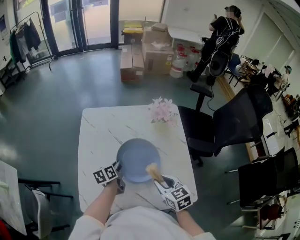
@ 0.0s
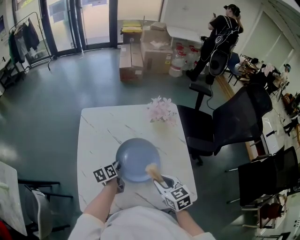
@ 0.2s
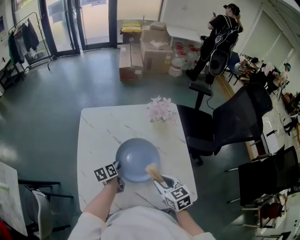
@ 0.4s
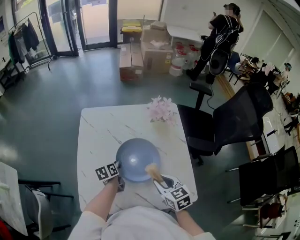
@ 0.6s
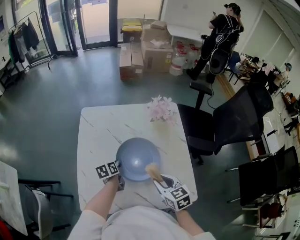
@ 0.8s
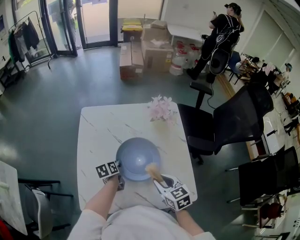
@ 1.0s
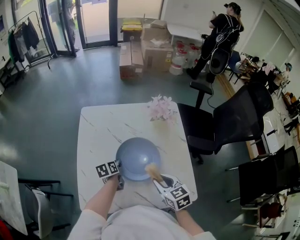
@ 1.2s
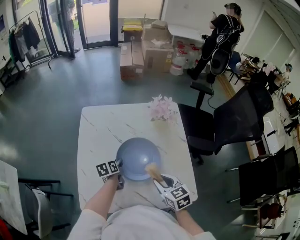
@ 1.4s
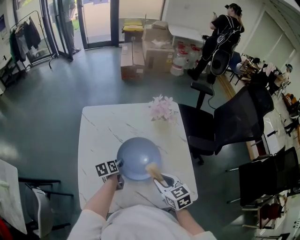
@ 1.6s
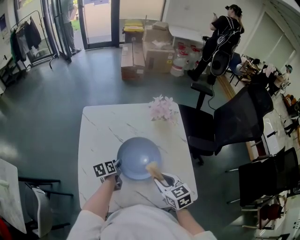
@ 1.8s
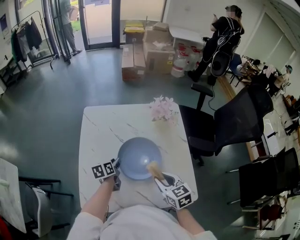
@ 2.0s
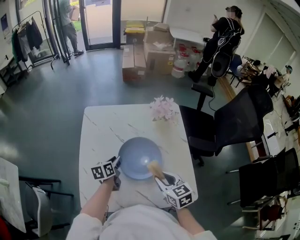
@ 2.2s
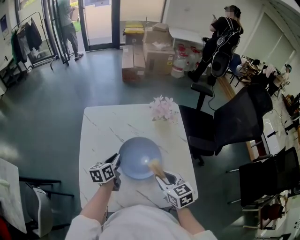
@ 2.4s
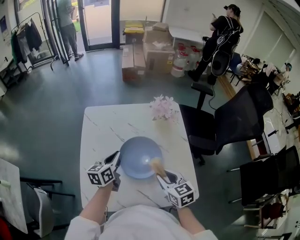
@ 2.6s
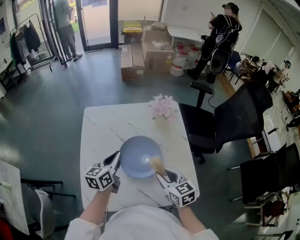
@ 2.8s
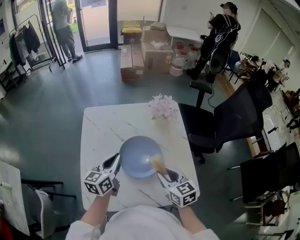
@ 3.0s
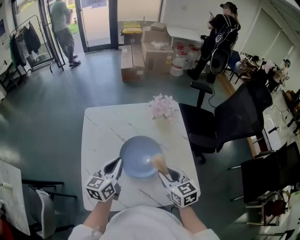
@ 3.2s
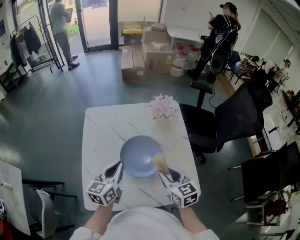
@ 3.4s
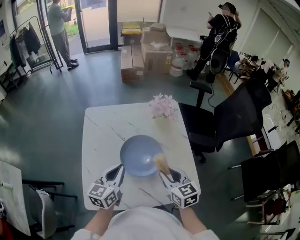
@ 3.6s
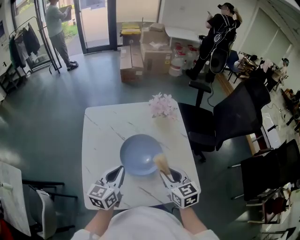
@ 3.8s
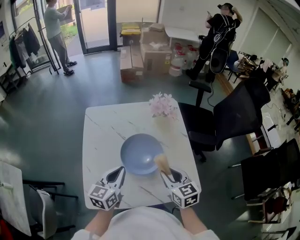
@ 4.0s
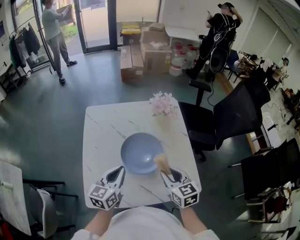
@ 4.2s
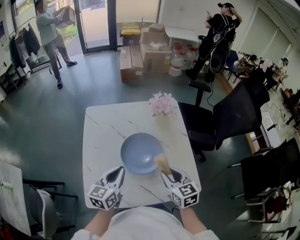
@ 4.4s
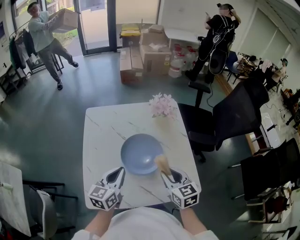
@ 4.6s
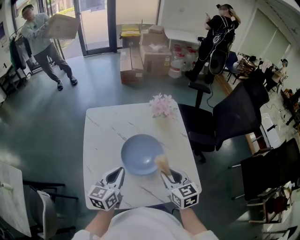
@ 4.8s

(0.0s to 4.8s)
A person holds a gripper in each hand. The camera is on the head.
0.0s - 1.6s: The left gripper opens.
1.6s - 3.2s: The right gripper moves upward, about 5 cm, while the left gripper travels upward by roughly 20 cm, rotates about 40 degrees, and closes up.
3.2s - 4.8s: The left gripper shifts some 5 cm backward.

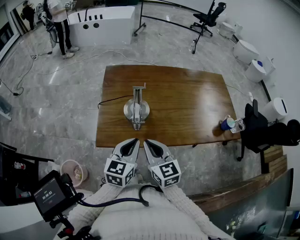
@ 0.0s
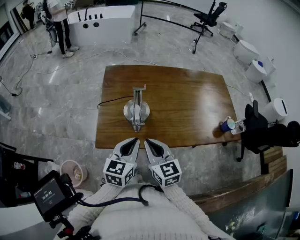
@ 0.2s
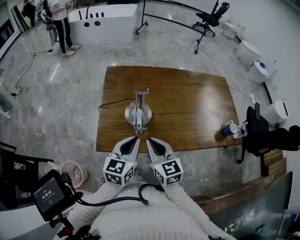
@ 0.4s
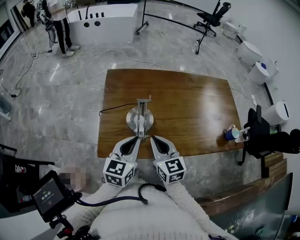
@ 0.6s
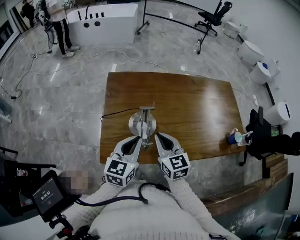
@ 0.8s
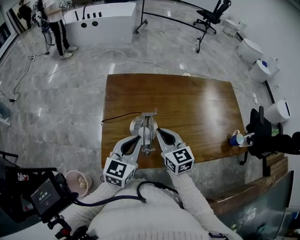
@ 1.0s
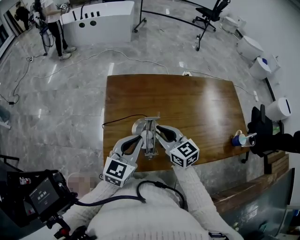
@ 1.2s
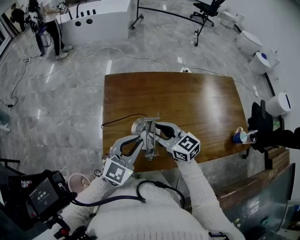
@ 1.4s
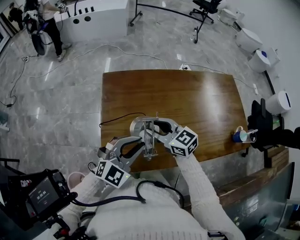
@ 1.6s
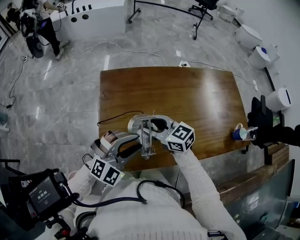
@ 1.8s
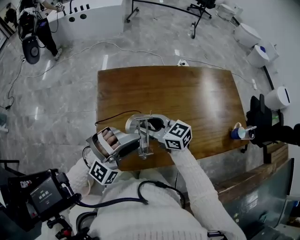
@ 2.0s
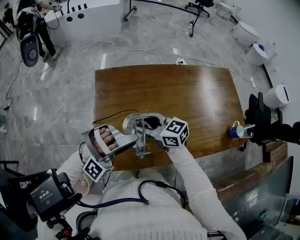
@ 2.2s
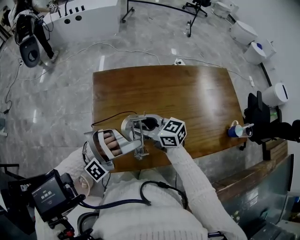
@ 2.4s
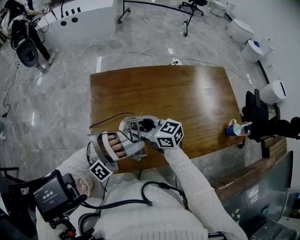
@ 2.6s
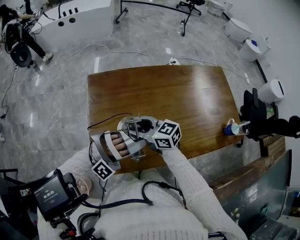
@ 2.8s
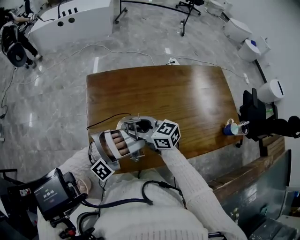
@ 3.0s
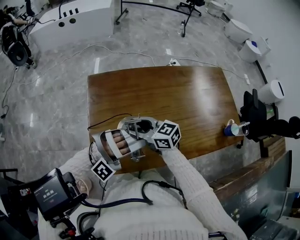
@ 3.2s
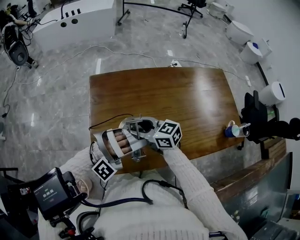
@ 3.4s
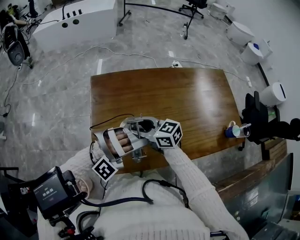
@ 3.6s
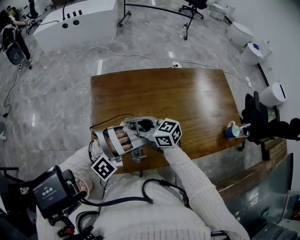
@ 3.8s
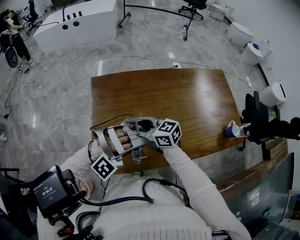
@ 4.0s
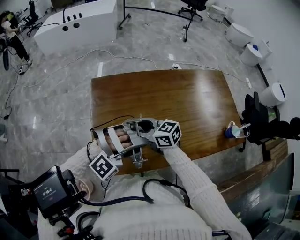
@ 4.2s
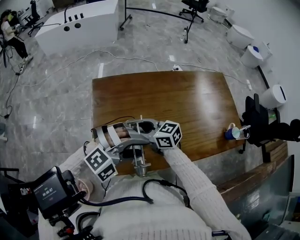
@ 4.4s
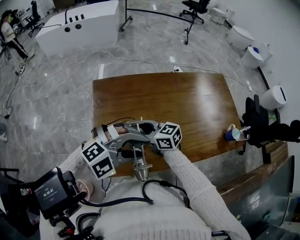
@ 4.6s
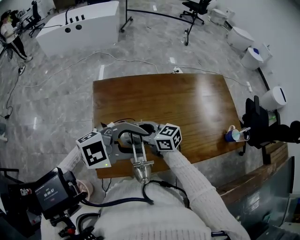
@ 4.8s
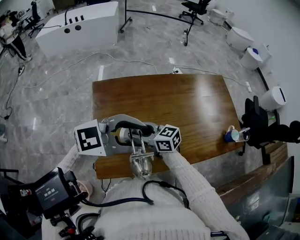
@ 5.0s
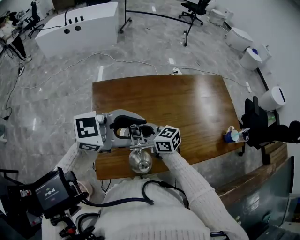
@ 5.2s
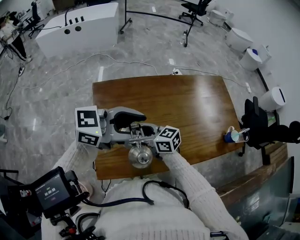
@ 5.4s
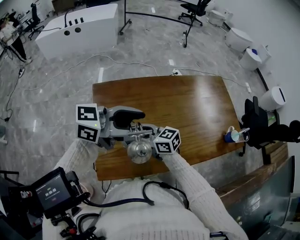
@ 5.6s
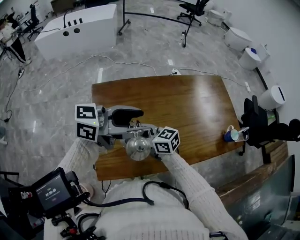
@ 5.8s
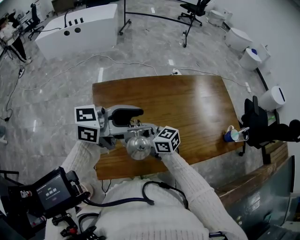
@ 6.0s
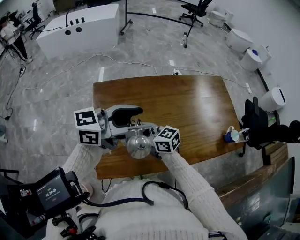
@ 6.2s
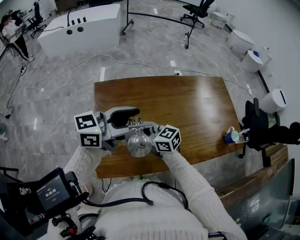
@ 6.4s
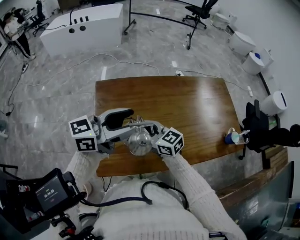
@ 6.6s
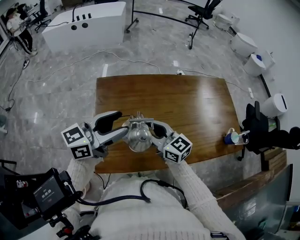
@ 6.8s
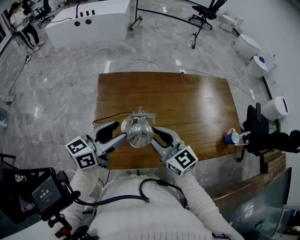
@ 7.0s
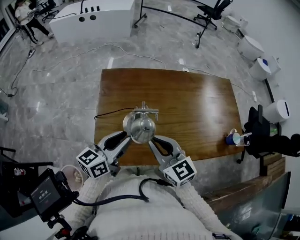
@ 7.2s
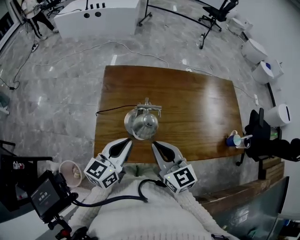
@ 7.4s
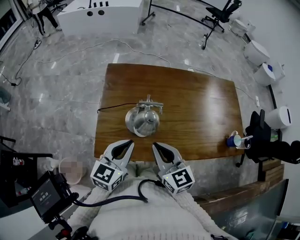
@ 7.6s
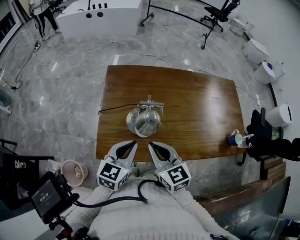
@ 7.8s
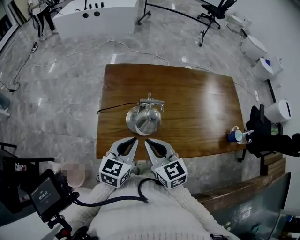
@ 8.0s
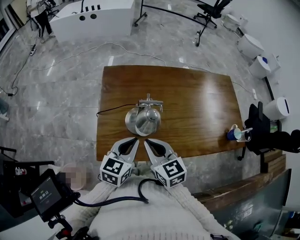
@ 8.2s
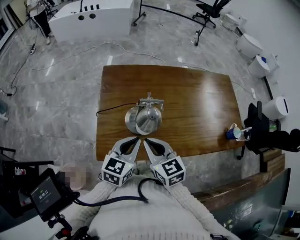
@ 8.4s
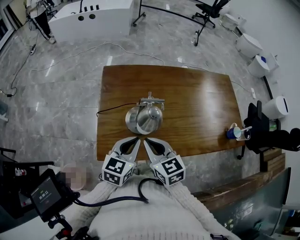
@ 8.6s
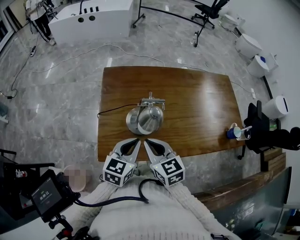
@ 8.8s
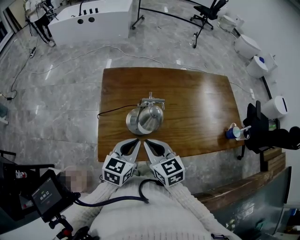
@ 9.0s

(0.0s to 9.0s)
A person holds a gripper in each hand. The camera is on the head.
0.0s - 1.6s: The left gripper is displaced forward by roughly 15 cm, and rotates around the line of its fingers by about 40 degrees, clockwise from behind; the right gripper is displaced forward by approximately 20 cm, turns by about 20 degrees, and opens up.
1.6s - 3.0s: The left gripper goes about 5 cm to the right, twists some 70 degrees clockwise, seen from behind, and opens up.
3.0s - 4.4s: The left gripper rotates roughly 40 degrees.
4.4s - 6.0s: The left gripper is displaced upward by roughly 10 cm, and rolls counterclockwise, seen from behind, by roughly 70 degrees.
6.0s - 7.6s: The right gripper shifts by about 15 cm, turns by roughly 30 degrees, and closes up, while the left gripper shifts about 15 cm downward, changes its angle by roughly 60 degrees, and closes up.
7.6s - 9.0s: The right gripper ends up roughly 5 cm from where it was.

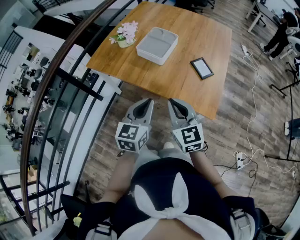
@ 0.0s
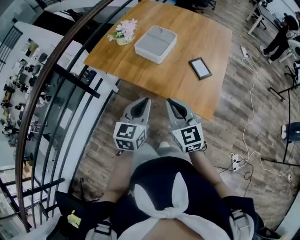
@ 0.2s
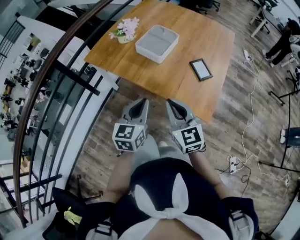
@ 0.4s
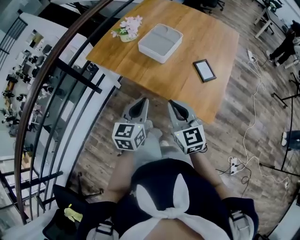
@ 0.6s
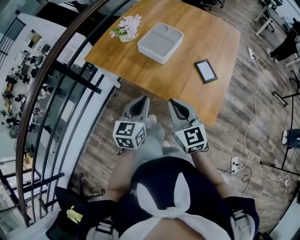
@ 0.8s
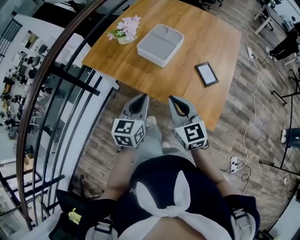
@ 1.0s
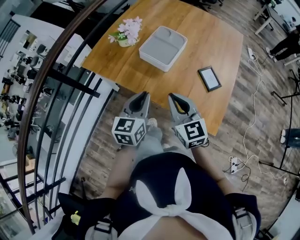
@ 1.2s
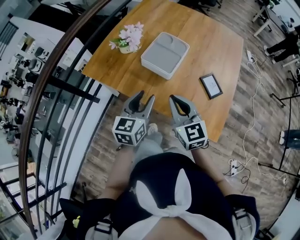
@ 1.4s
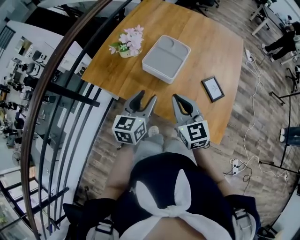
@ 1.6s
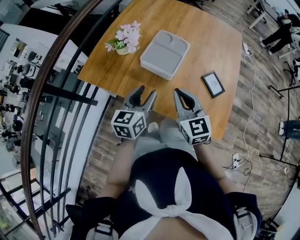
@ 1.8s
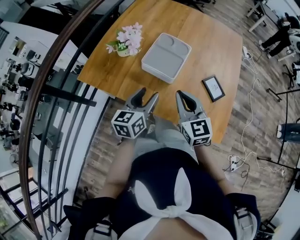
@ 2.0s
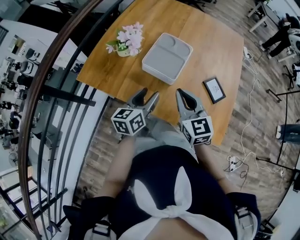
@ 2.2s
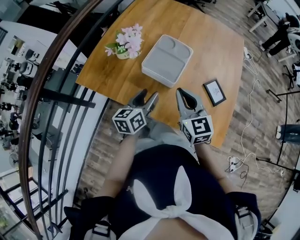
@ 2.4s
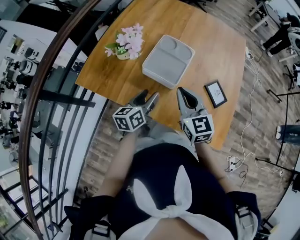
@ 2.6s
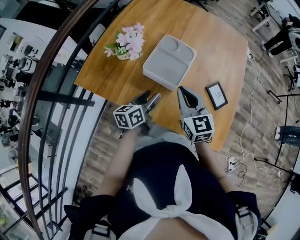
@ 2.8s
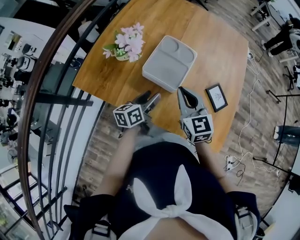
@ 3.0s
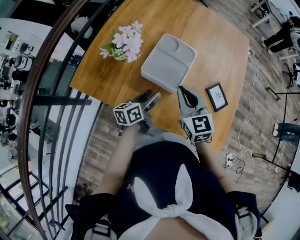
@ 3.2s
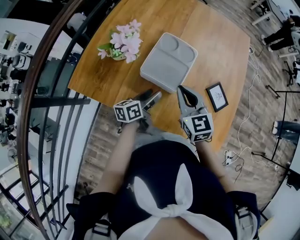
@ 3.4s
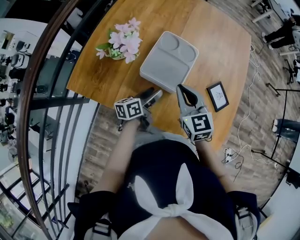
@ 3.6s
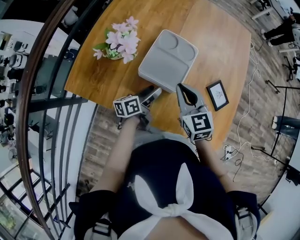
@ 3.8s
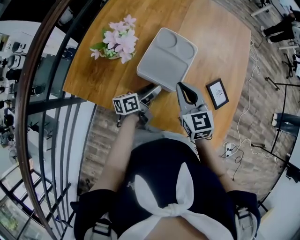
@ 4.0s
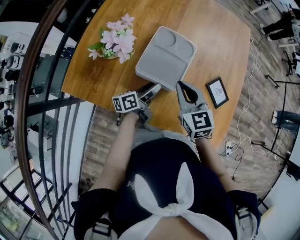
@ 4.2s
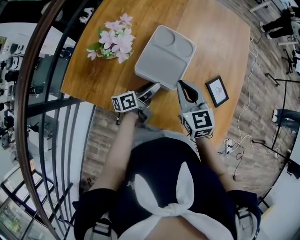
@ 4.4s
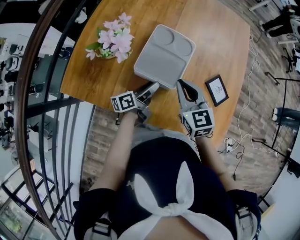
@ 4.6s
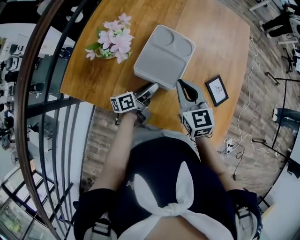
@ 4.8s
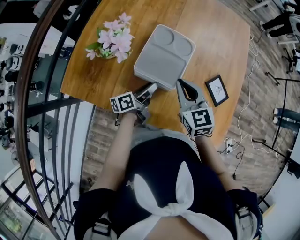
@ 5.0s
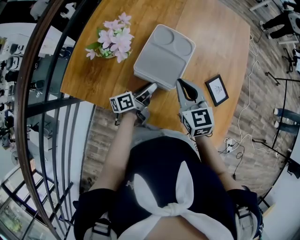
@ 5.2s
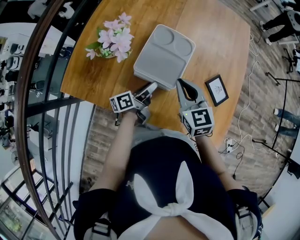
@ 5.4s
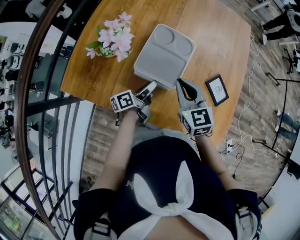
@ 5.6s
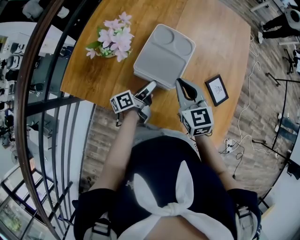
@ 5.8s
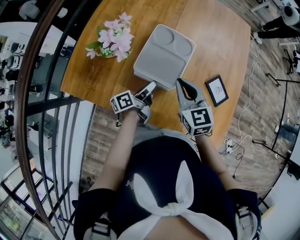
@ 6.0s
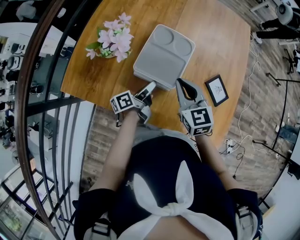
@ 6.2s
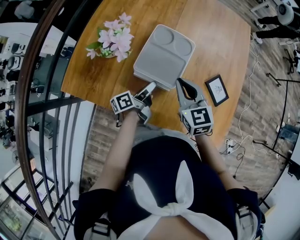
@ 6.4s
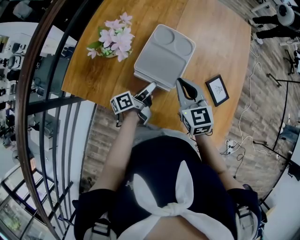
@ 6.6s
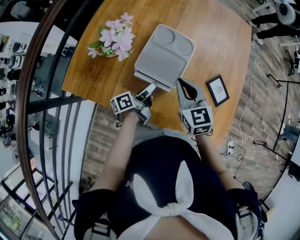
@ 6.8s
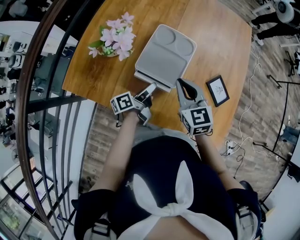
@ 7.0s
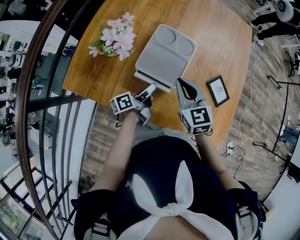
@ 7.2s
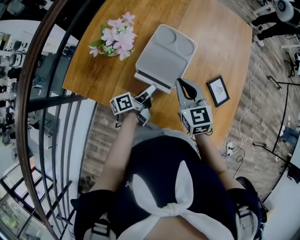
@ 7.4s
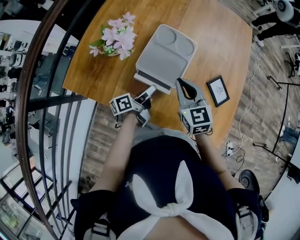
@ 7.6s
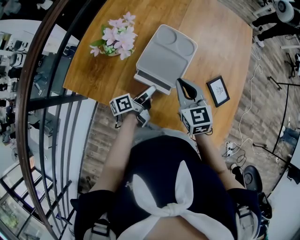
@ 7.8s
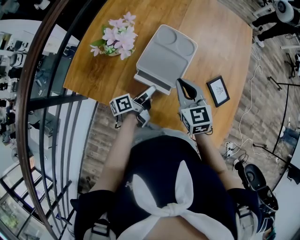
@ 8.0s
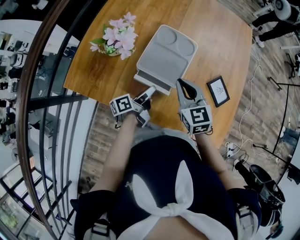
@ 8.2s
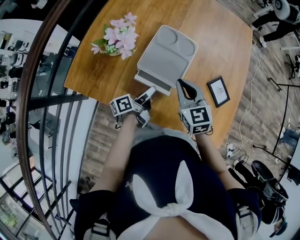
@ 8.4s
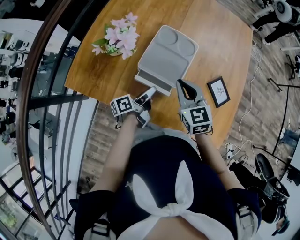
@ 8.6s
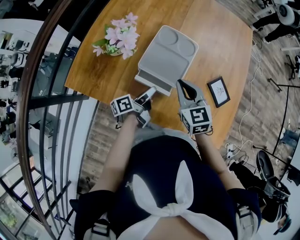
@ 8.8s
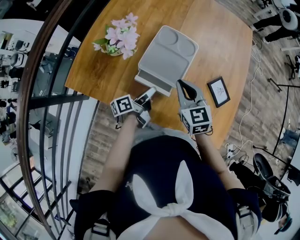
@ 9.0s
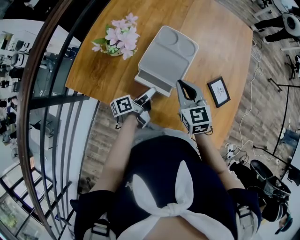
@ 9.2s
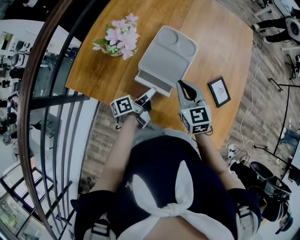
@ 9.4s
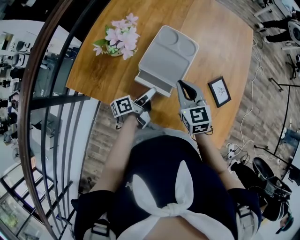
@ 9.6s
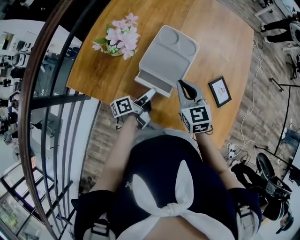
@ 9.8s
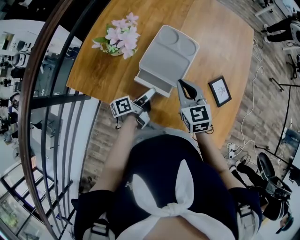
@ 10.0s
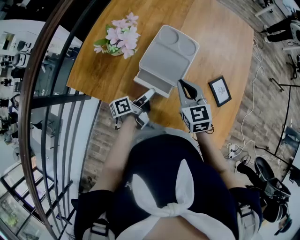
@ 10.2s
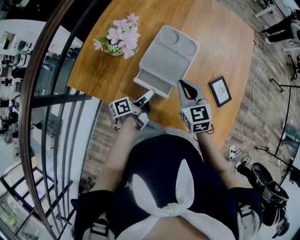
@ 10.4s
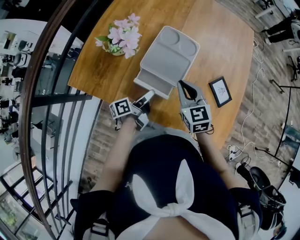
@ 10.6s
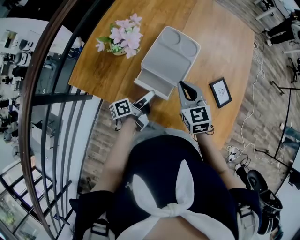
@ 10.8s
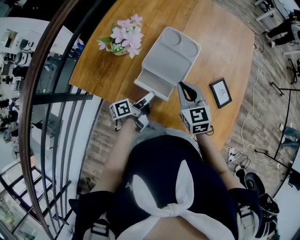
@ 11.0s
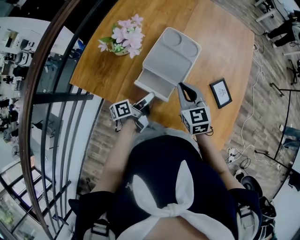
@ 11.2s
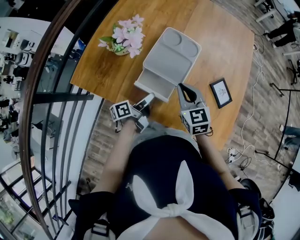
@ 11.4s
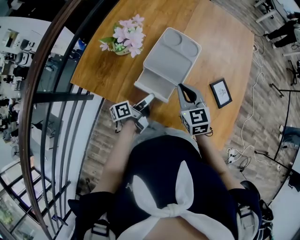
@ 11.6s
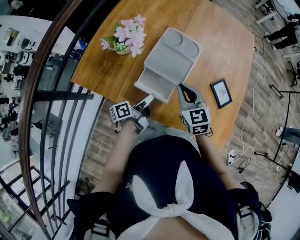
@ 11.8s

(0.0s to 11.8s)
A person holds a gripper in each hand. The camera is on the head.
0.0s - 1.4s: Both grippers move forward, roughly 20 cm. The left gripper opens up.
1.4s - 3.0s: The left gripper moves forward and downward, about 20 cm, and swivels roughly 40 degrees. Meanwhile the right gripper travels forward by some 15 cm.
3.0s - 4.4s: The right gripper shifts approximately 5 cm forward; the left gripper is displaced forward and downward by about 10 cm, and turns by approximately 20 degrees.
4.4s - 8.8s: There are only small adjustments of the grippers.
8.8s - 11.8s: The grippers make only small movements.
